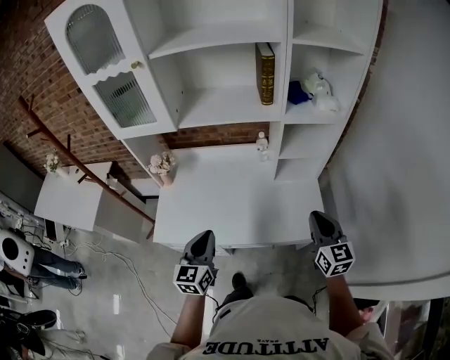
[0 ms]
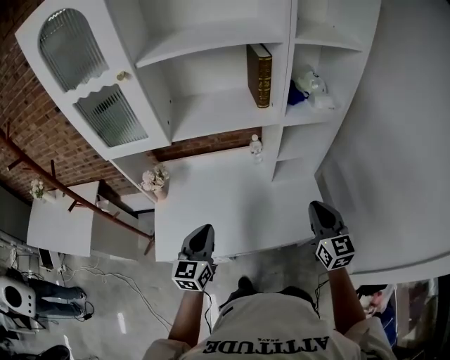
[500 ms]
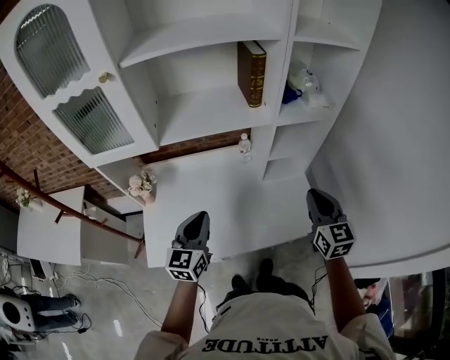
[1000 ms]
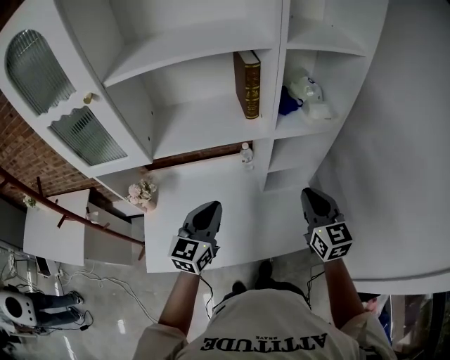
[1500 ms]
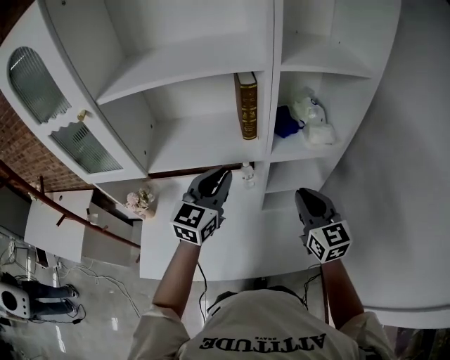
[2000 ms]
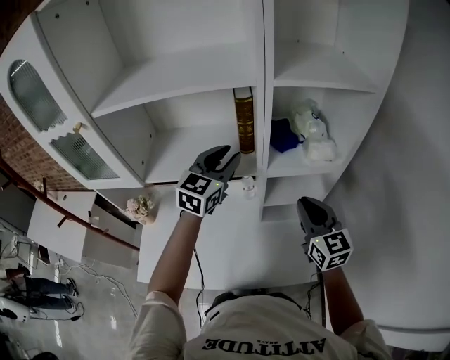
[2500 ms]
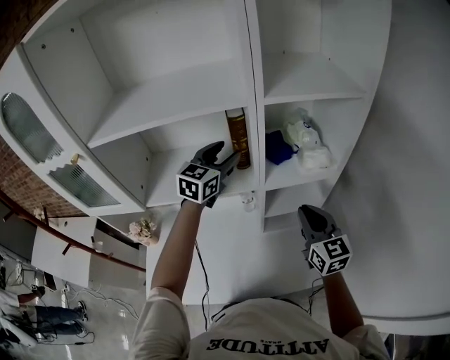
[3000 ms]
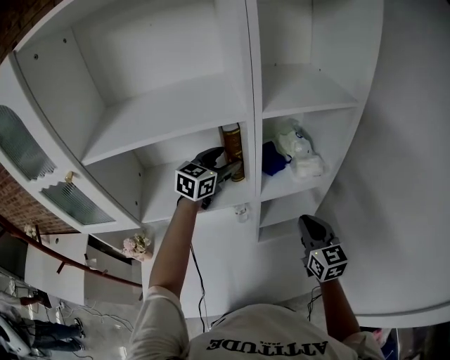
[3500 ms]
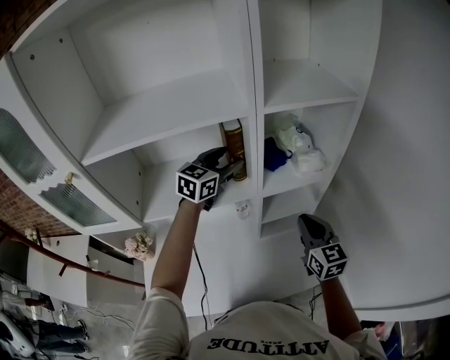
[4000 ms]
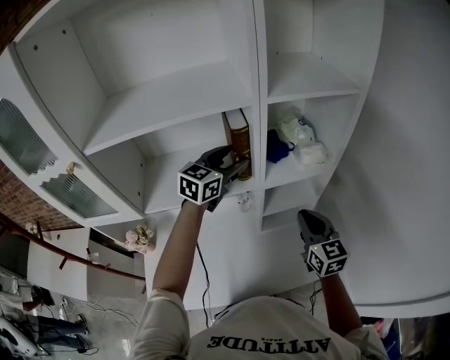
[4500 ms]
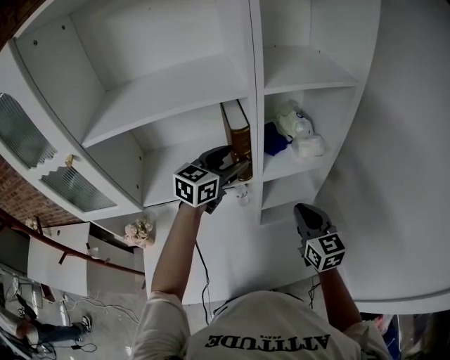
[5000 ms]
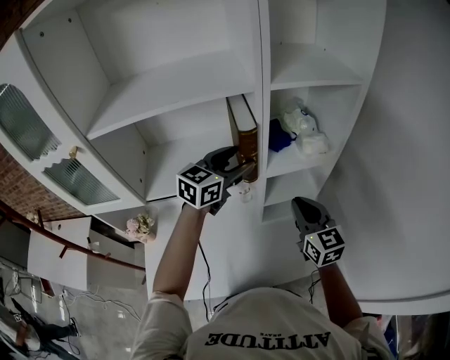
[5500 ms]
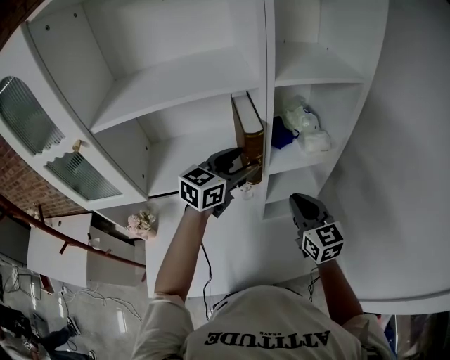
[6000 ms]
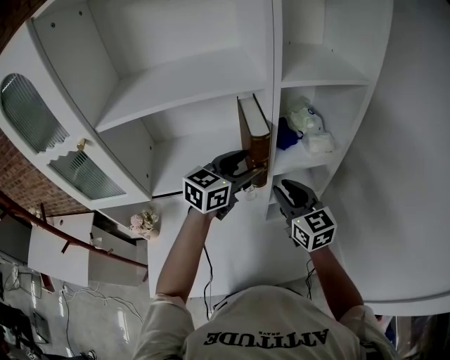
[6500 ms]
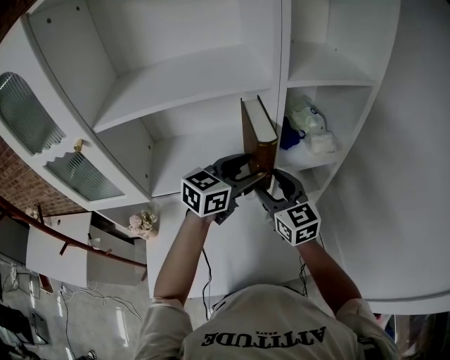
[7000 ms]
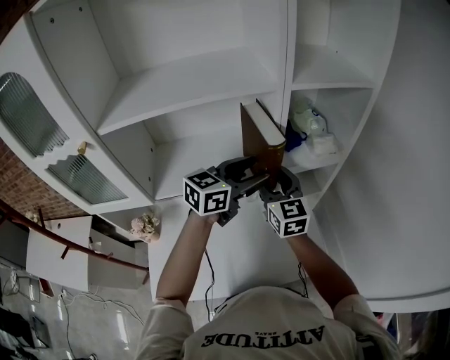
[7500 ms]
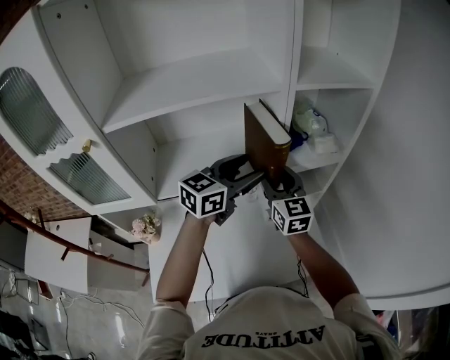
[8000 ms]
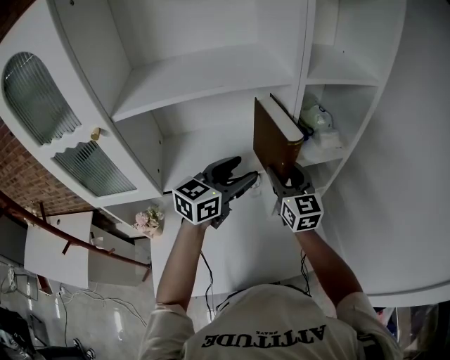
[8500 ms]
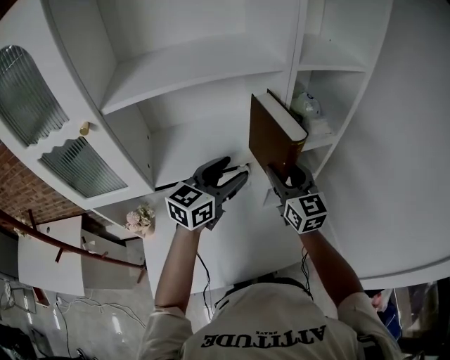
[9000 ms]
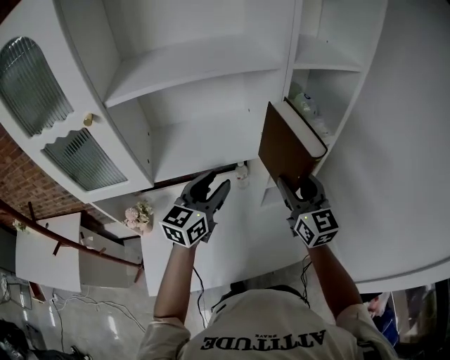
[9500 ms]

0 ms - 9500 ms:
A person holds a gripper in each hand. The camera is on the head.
0 ms - 2000 ms: The right gripper travels forward and upward by approximately 20 cm, while the left gripper moves forward and upward, some 35 cm, and rotates roughly 30 degrees.
2000 ms - 4000 ms: The right gripper moves some 5 cm. The left gripper heads forward, covering some 20 cm, and opens up.
4000 ms - 5500 ms: The left gripper travels backward by approximately 10 cm.
5500 ms - 7500 ms: The right gripper travels to the left and forward by roughly 15 cm, and opens.
7500 ms - 9500 ms: The left gripper goes about 15 cm backward and to the left, and changes its angle by approximately 20 degrees; the right gripper heads backward and to the right, covering about 10 cm.

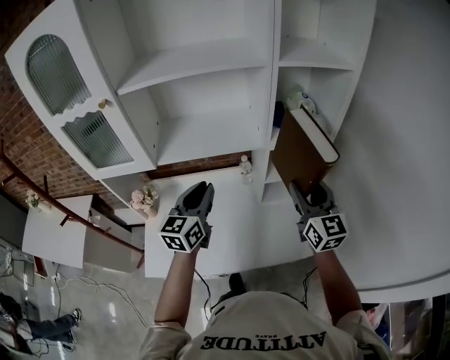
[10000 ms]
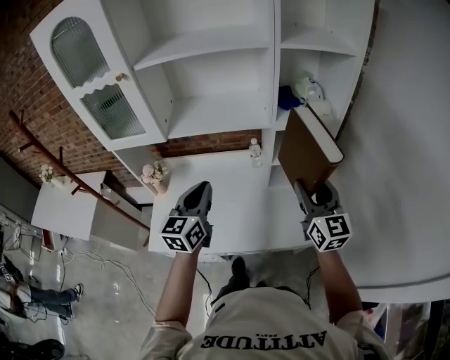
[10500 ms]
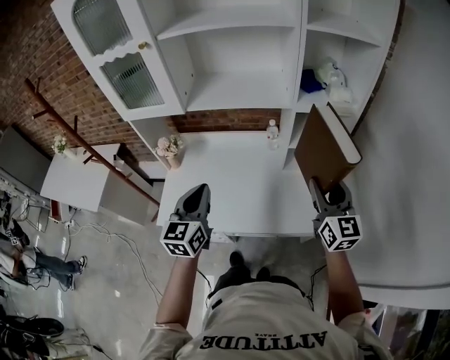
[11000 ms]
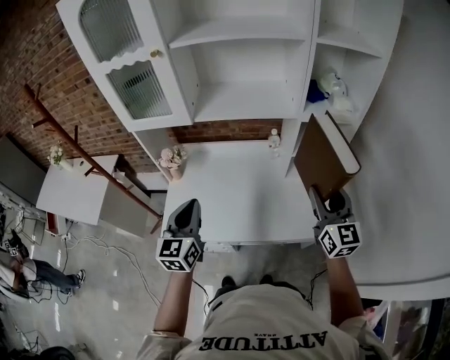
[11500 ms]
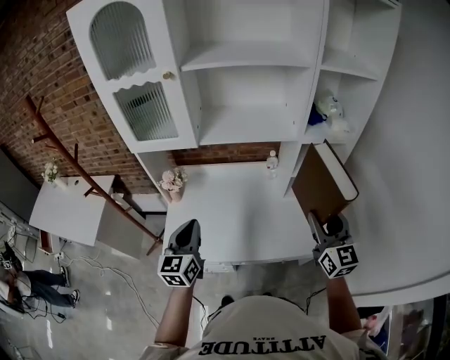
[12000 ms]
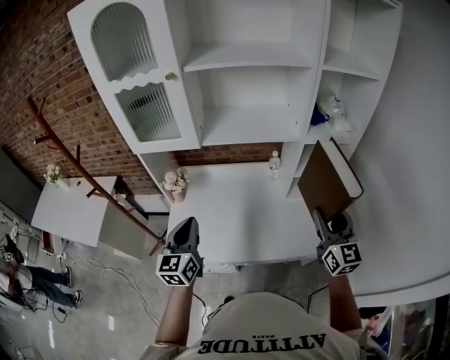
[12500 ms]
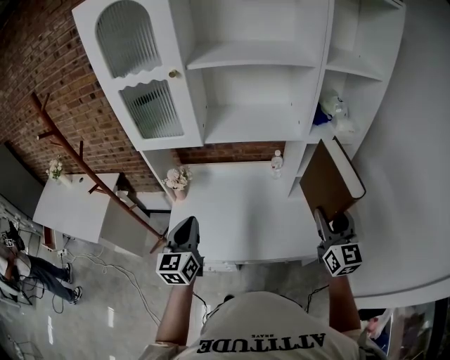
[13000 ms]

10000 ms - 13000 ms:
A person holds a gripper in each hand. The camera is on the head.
10000 ms - 11500 ms: The left gripper goes roughly 25 cm backward and to the left, while the right gripper travels backward by approximately 10 cm.
11500 ms - 13000 ms: The left gripper travels to the left by about 5 cm.

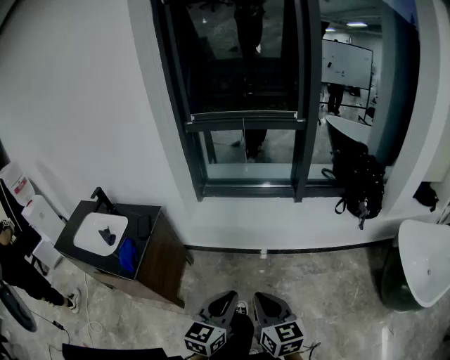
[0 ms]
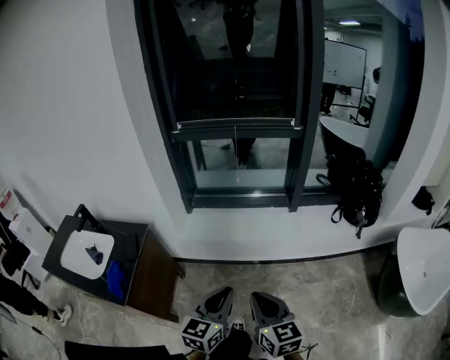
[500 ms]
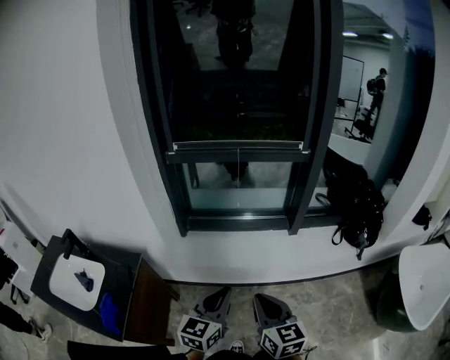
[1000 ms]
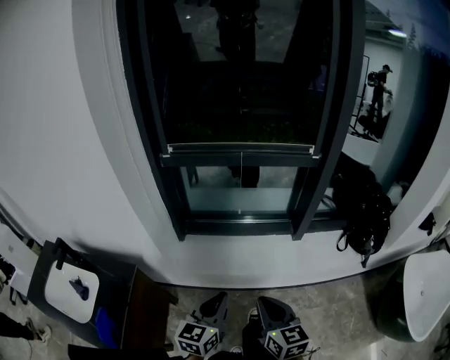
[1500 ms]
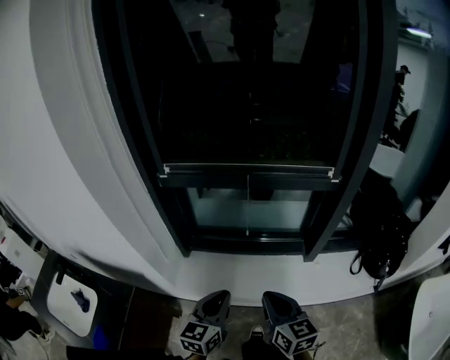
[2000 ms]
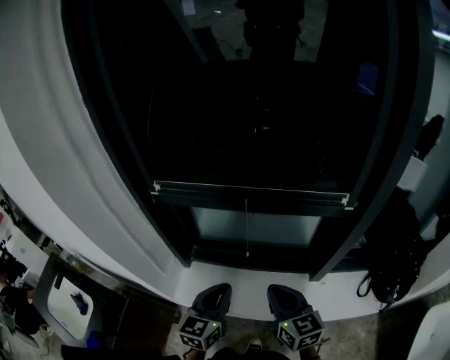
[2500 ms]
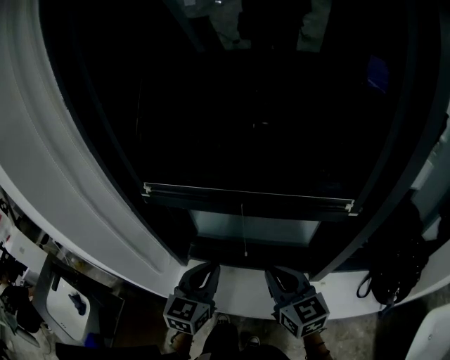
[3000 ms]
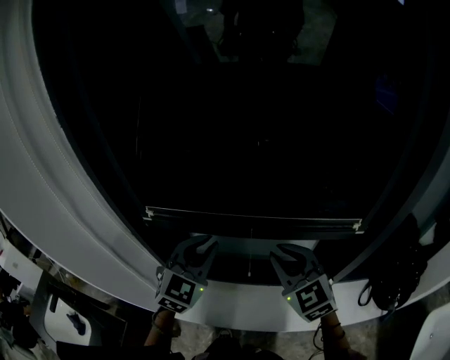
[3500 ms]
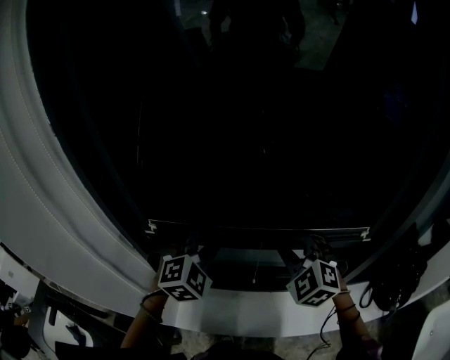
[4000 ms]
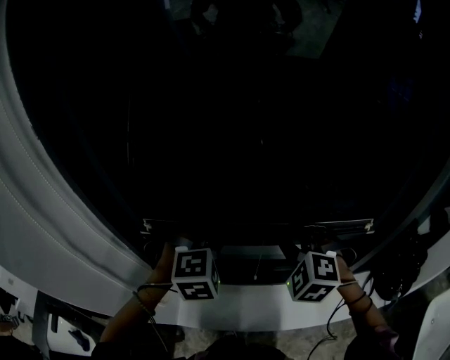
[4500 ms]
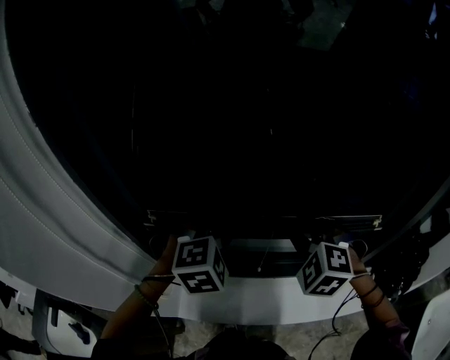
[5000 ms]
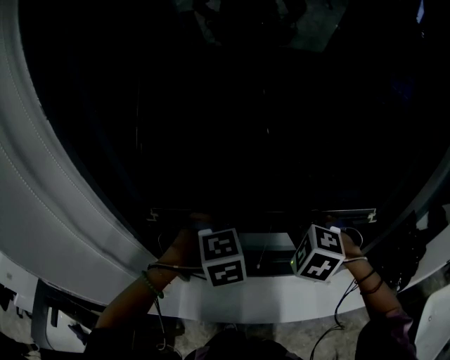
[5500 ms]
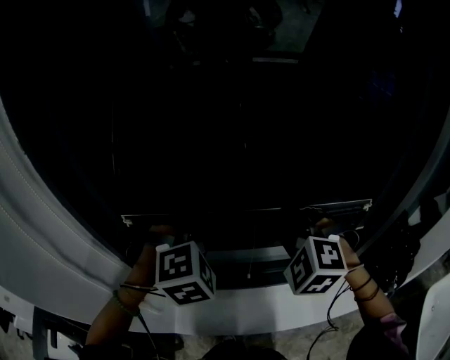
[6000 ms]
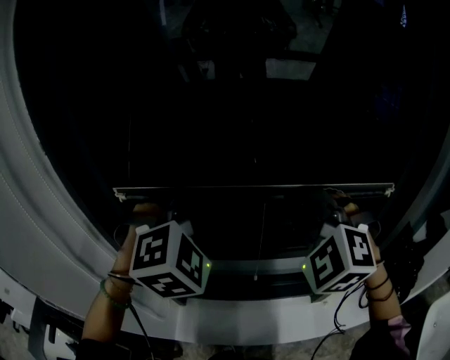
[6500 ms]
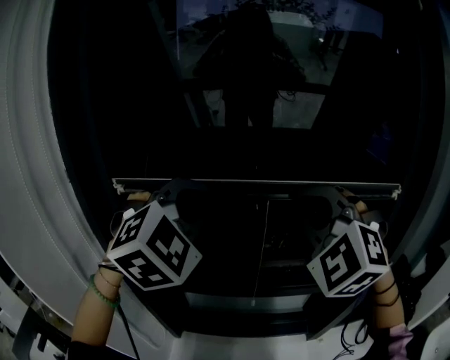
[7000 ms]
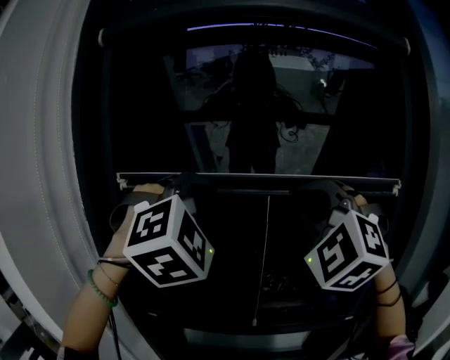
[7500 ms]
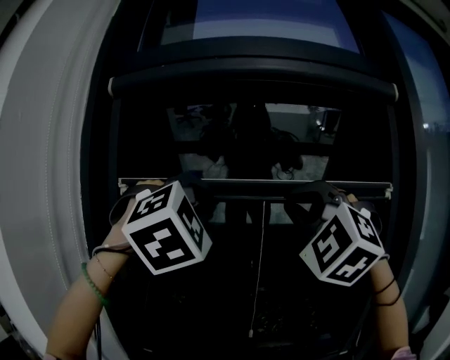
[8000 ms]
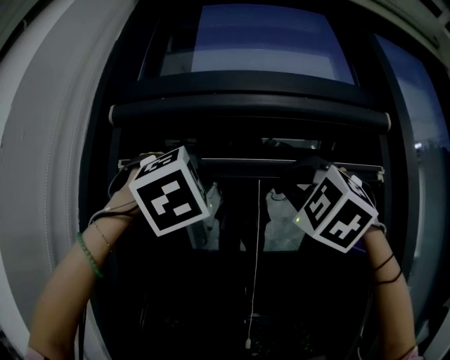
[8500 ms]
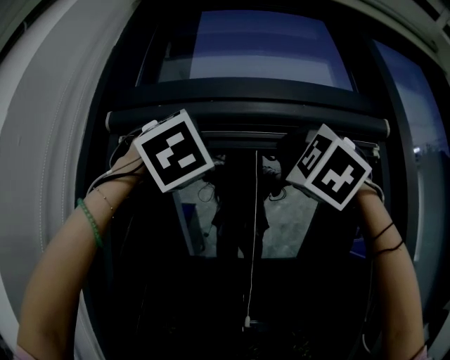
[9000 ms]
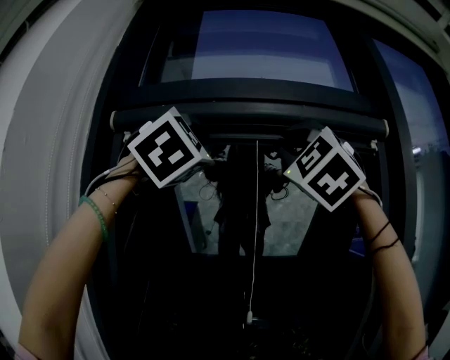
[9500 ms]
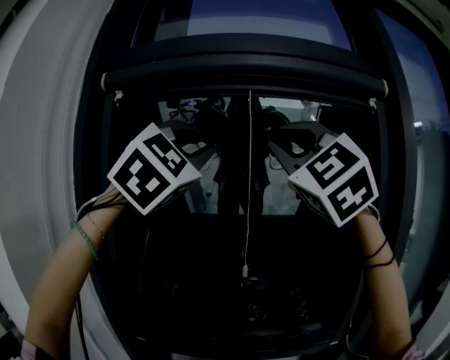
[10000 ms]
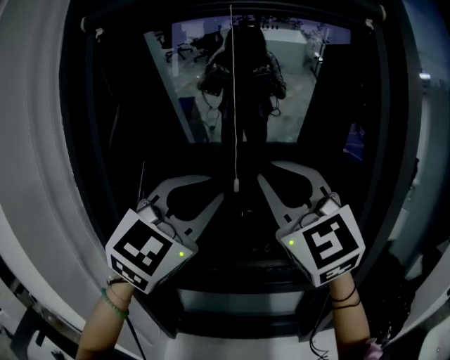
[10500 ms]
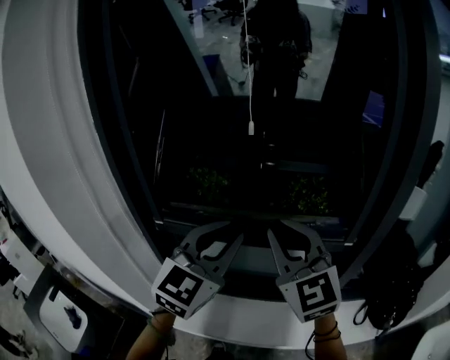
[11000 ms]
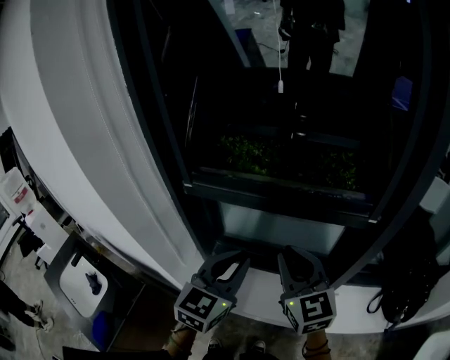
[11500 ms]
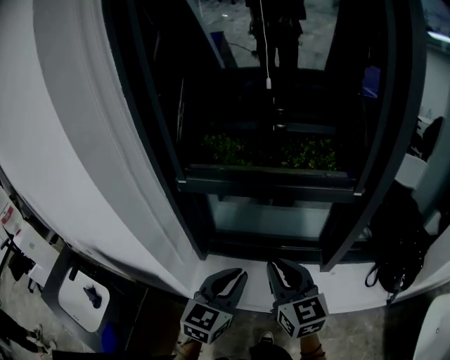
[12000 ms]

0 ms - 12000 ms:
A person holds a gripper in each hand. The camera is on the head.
0 ms - 2000 ms: The pair of grippers is taken forward, some 50 cm.
2000 ms - 4000 ms: Both grippers travel together forward, about 35 cm. The left gripper rolls clockwise, seen from behind, by approximately 70 degrees; the right gripper twists about 60 degrees counterclockwise, seen from behind.
4000 ms - 6000 ms: Both grippers travel together upward, some 5 cm.
6000 ms - 8000 ms: The grippers both shift upward by roughly 50 cm. The left gripper points its fingers about 40 degrees further upward, while the right gripper angles its fingers upward, by some 40 degrees.
8000 ms - 10000 ms: The grippers both shift upward by roughly 10 cm. The right gripper rotates approximately 20 degrees, while the left gripper turns by roughly 20 degrees.
10000 ms - 12000 ms: The grippers both shift downward and backward by about 70 cm. The left gripper twists some 60 degrees counterclockwise, seen from behind. Meanwhile the right gripper rotates around the line of its fingers by roughly 60 degrees, clockwise from behind.

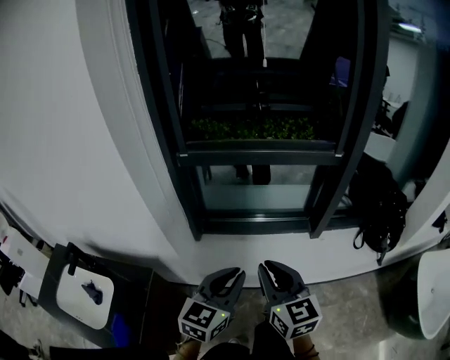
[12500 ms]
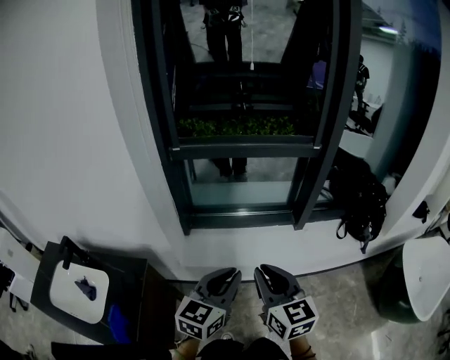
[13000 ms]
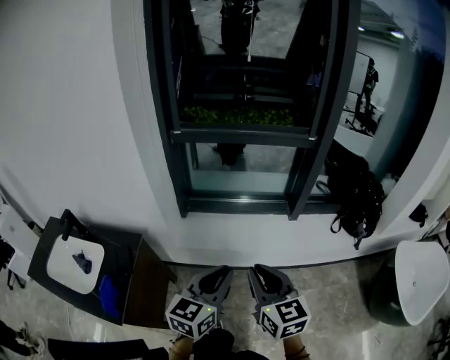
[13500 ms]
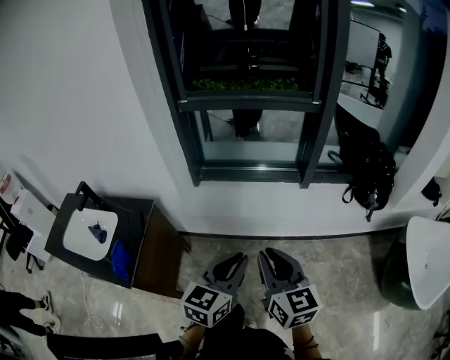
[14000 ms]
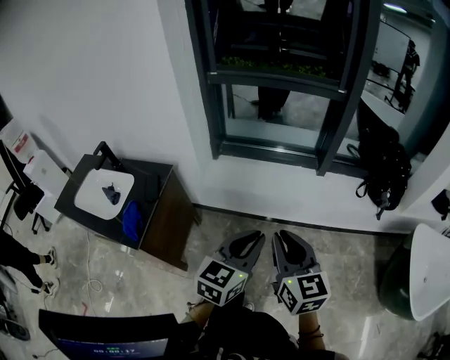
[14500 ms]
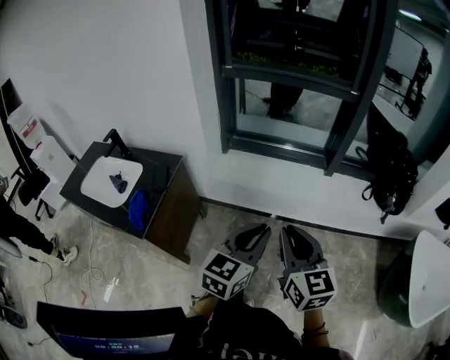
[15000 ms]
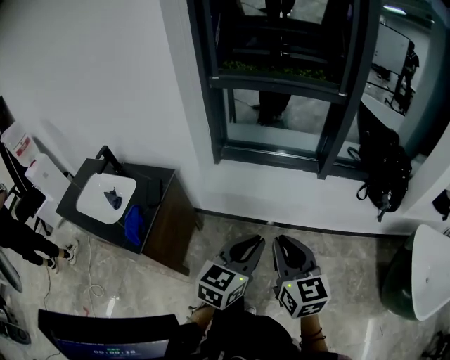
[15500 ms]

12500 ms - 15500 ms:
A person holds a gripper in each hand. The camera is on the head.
12500 ms - 14000 ms: The right gripper shifts roughly 25 cm backward. The left gripper moves backward and to the right, roughly 30 cm.
14000 ms - 15500 ms: The right gripper shifts by approximately 5 cm.
